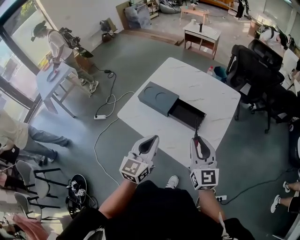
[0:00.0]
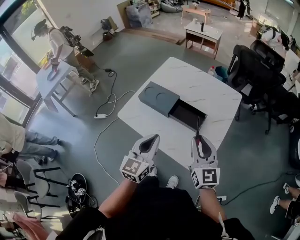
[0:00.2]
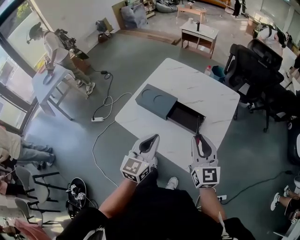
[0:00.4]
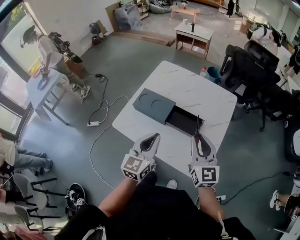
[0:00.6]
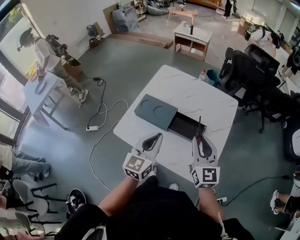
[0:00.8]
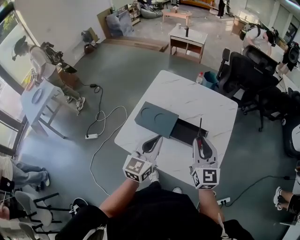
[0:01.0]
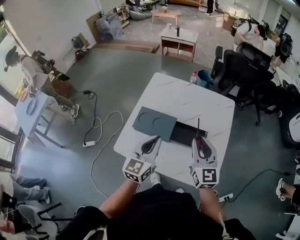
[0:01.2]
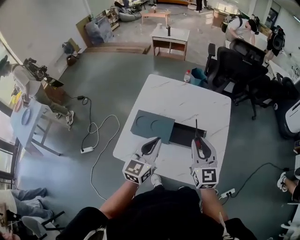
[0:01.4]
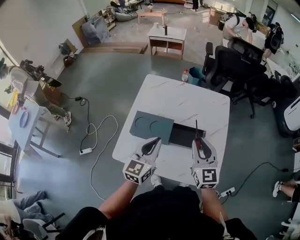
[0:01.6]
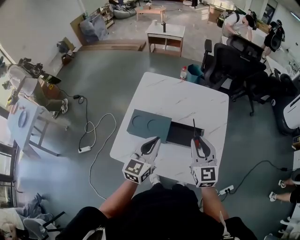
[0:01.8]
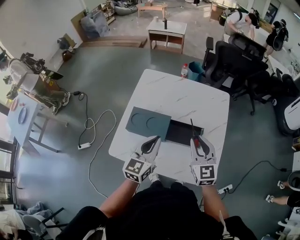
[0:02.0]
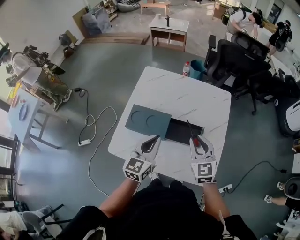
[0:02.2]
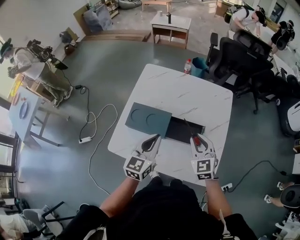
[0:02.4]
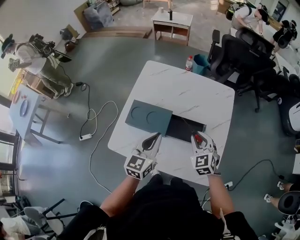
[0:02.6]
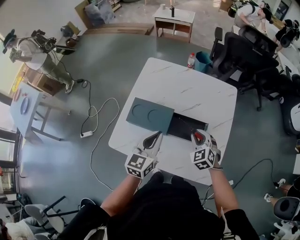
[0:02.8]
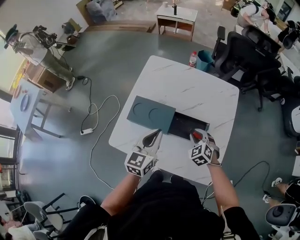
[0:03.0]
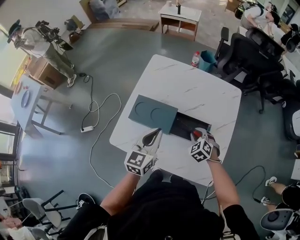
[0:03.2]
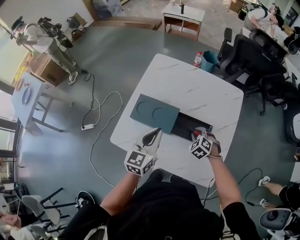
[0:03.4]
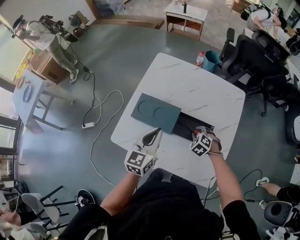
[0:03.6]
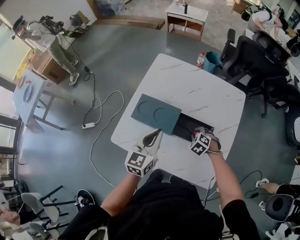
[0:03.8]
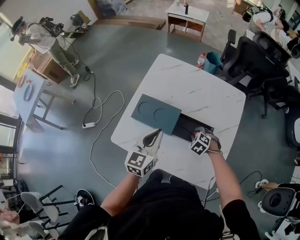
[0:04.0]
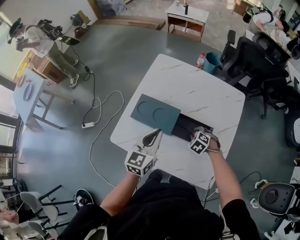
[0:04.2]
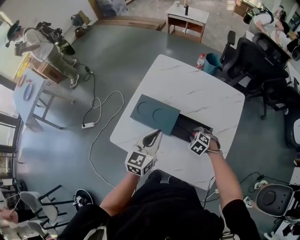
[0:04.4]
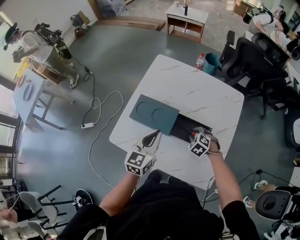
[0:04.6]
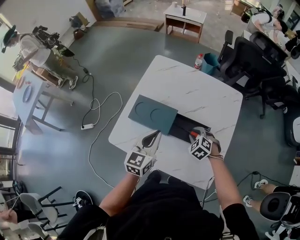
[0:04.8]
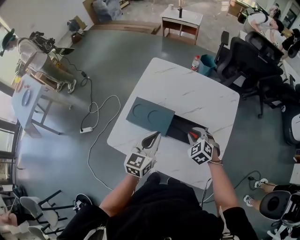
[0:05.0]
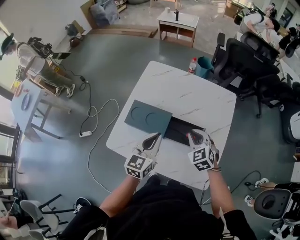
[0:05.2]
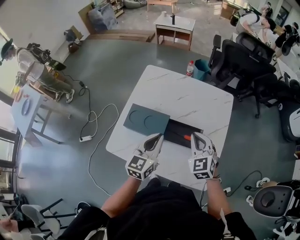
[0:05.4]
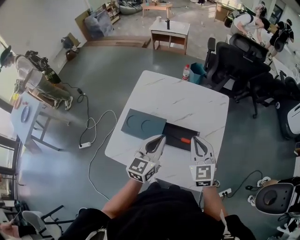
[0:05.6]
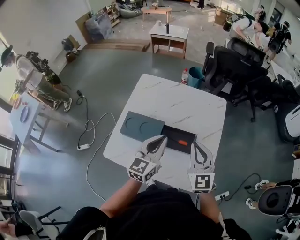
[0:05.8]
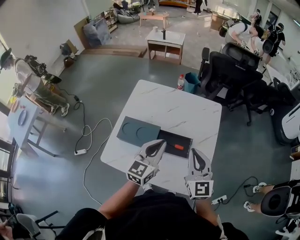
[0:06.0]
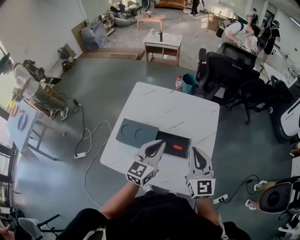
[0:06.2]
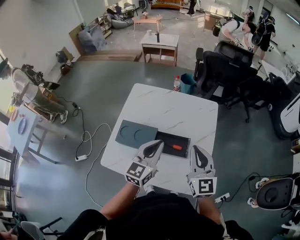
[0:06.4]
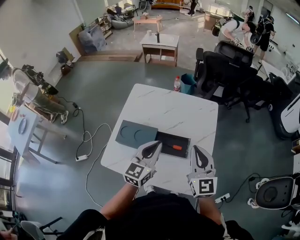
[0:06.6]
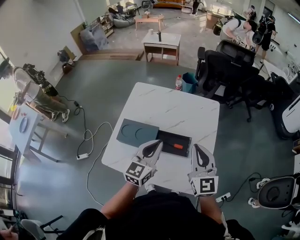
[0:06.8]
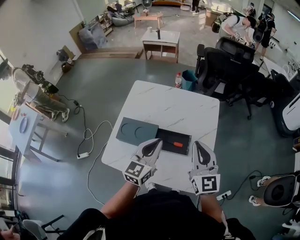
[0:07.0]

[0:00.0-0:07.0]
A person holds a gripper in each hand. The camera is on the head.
0:00.0 to 0:01.4: The right gripper goes approximately 15 cm forward and to the left; the left gripper moves forward, some 15 cm.
0:01.4 to 0:02.8: The right gripper goes some 15 cm downward, and tips its fingers downward by approximately 30 degrees. The left gripper shifts some 5 cm downward.
0:02.8 to 0:04.2: The right gripper moves downward, approximately 10 cm, and turns by some 30 degrees.
0:04.2 to 0:05.6: The right gripper travels upward by approximately 25 cm, and tips its fingers upward by roughly 50 degrees, while the left gripper is displaced to the right and upward by about 10 cm.
0:05.6 to 0:07.0: The right gripper goes roughly 10 cm upward.

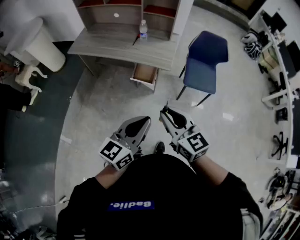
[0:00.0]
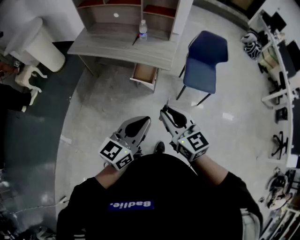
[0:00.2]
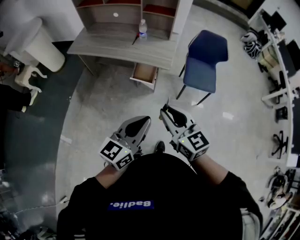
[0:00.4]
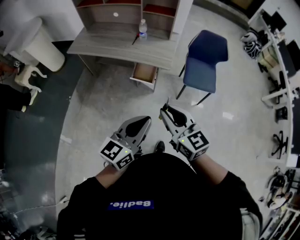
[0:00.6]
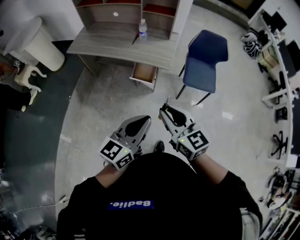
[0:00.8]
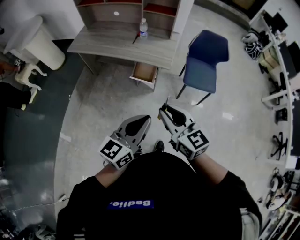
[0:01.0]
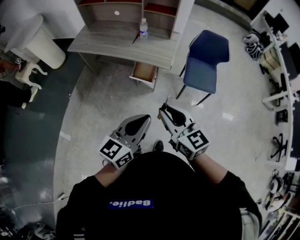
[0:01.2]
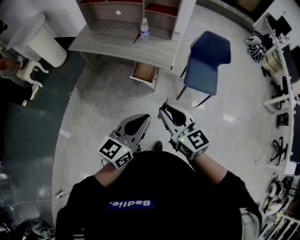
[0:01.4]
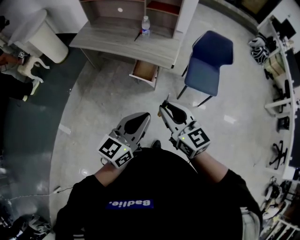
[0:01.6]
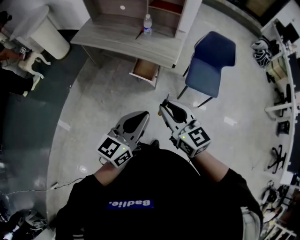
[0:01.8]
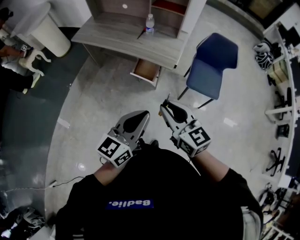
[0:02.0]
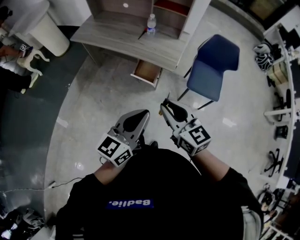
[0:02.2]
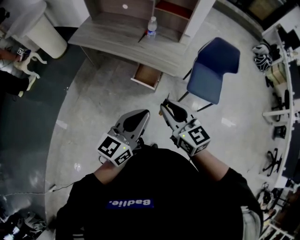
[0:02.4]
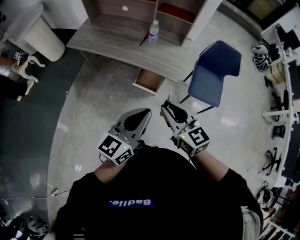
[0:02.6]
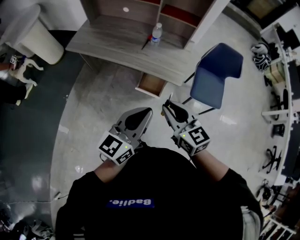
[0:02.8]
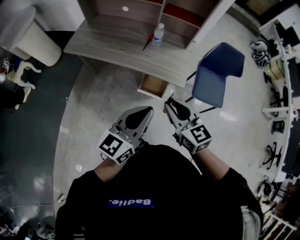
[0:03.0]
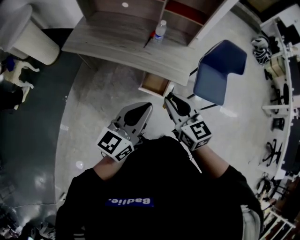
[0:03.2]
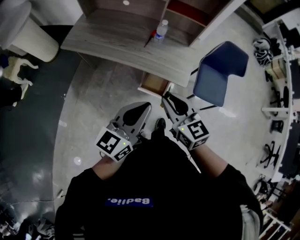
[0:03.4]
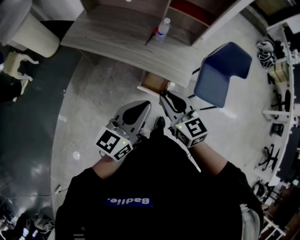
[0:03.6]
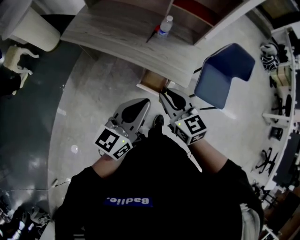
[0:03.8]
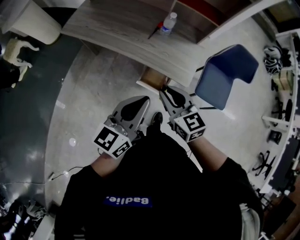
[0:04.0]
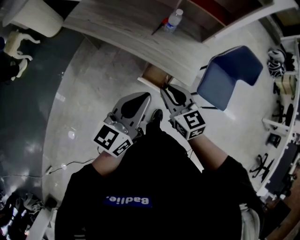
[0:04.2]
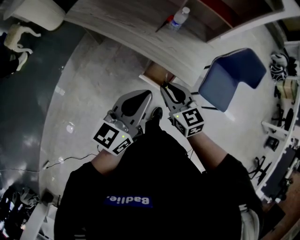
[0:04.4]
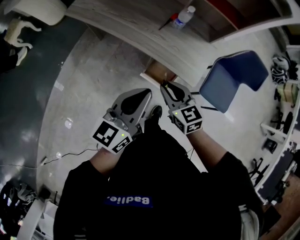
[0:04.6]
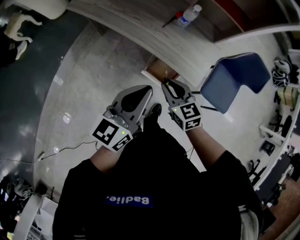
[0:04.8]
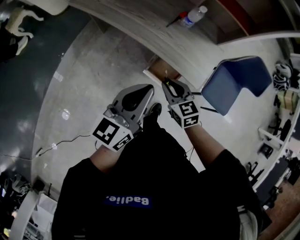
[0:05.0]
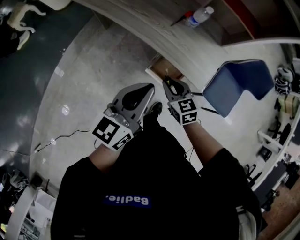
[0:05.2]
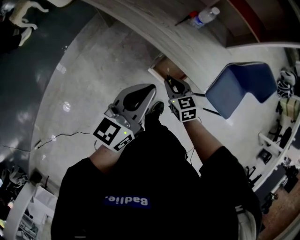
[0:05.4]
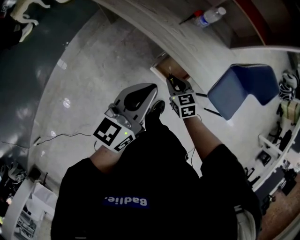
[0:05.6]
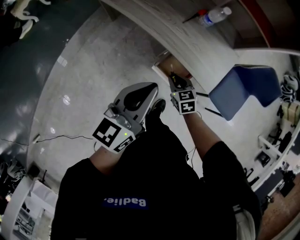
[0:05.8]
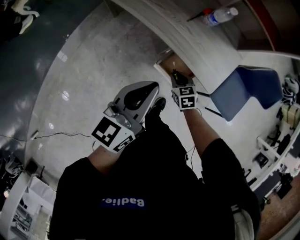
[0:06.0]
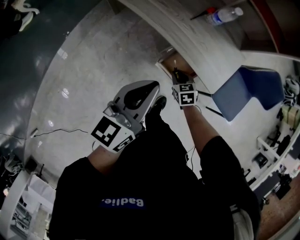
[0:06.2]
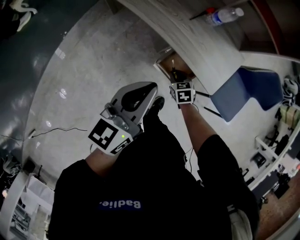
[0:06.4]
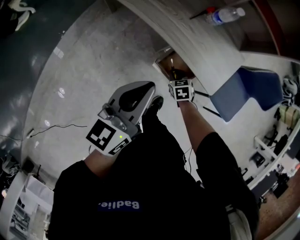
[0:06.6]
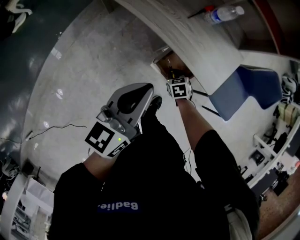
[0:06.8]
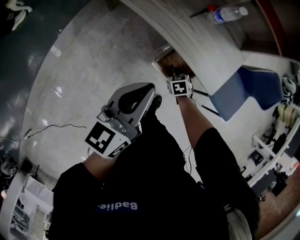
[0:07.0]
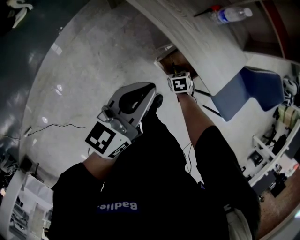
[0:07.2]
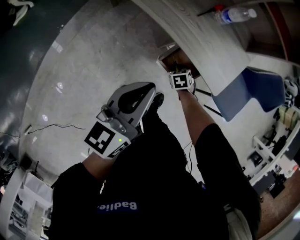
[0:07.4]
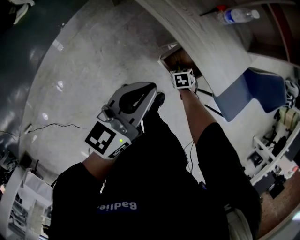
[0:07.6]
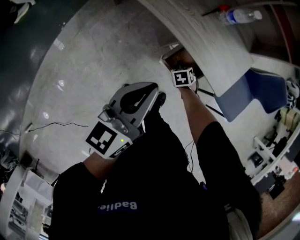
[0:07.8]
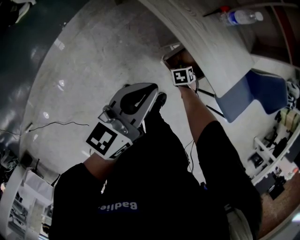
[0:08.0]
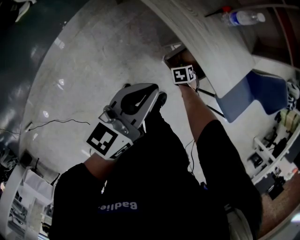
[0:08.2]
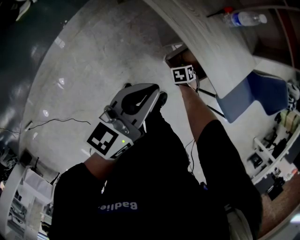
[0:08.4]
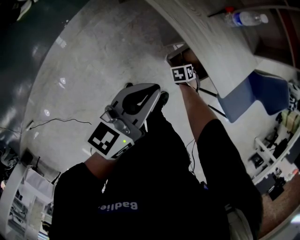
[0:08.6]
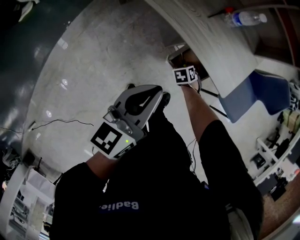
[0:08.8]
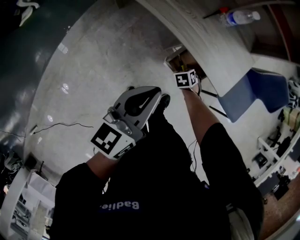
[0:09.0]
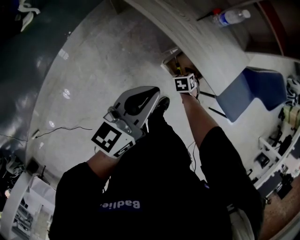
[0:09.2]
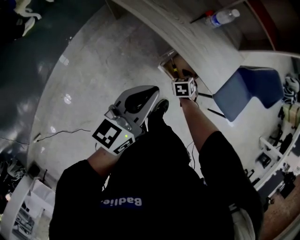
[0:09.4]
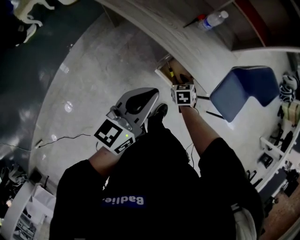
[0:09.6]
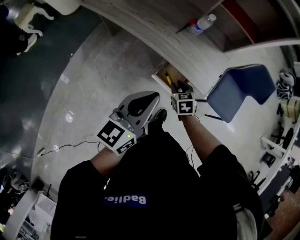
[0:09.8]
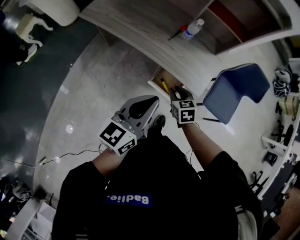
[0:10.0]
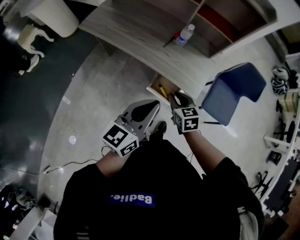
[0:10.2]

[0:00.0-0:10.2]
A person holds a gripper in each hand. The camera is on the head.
0:00.0 to 0:01.4: The grippers stay close to where they were, moving slightly.
0:01.4 to 0:03.0: The right gripper travels forward by some 20 cm. The left gripper shifts about 20 cm forward and to the left.
0:03.0 to 0:04.4: The right gripper shifts about 15 cm downward and forward, while the left gripper moves forward and downward, approximately 10 cm.
0:04.4 to 0:05.8: The right gripper shifts roughly 20 cm downward, and changes its angle by roughly 20 degrees. The left gripper moves downward, roughly 5 cm.
0:05.8 to 0:07.2: The left gripper moves some 5 cm, while the right gripper moves downward, approximately 15 cm, and rotates approximately 20 degrees.
0:07.2 to 0:08.8: The grippers make only small movements.
0:08.8 to 0:10.2: The left gripper shifts about 15 cm upward and to the right. The right gripper moves upward, approximately 30 cm, and angles its fingers upward, by some 30 degrees.

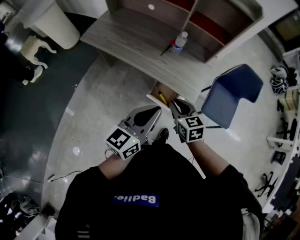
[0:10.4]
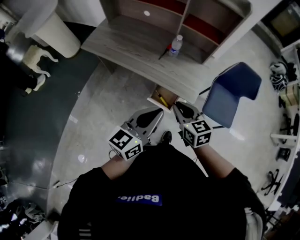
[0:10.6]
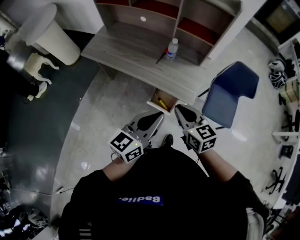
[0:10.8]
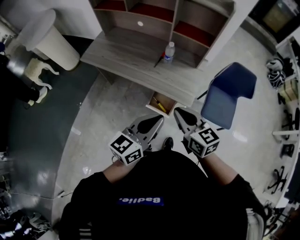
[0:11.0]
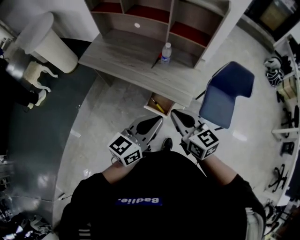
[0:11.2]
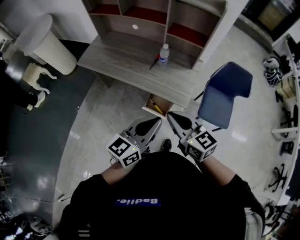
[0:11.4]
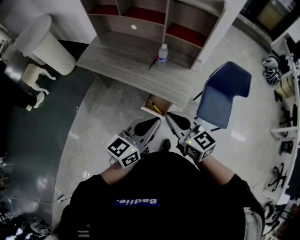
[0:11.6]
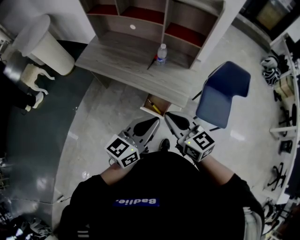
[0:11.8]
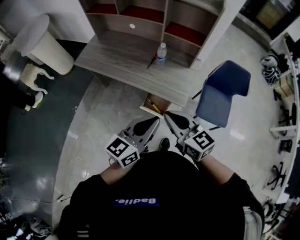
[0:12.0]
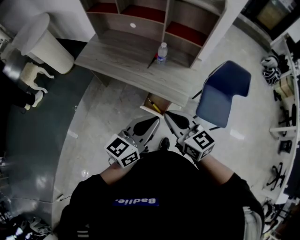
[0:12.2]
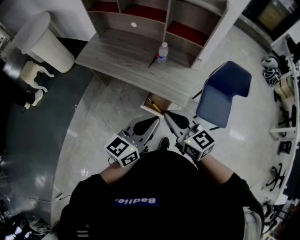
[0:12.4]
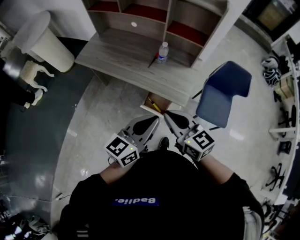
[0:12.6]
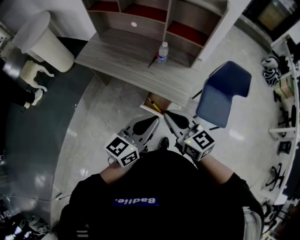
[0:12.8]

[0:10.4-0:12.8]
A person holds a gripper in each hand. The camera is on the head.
0:10.4 to 0:11.6: The right gripper shifts roughly 15 cm upward, and rotates roughly 20 degrees. The left gripper ends up roughly 5 cm from where it was.
0:11.6 to 0:12.8: The two grippers keep their place.

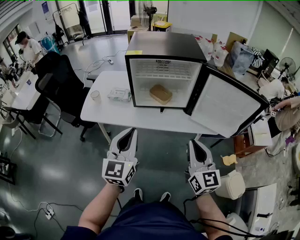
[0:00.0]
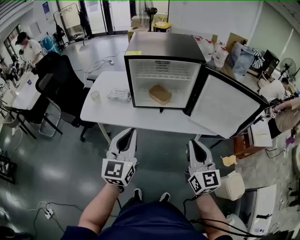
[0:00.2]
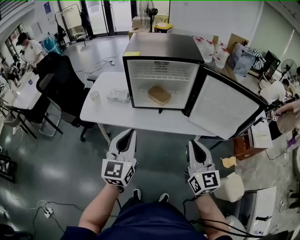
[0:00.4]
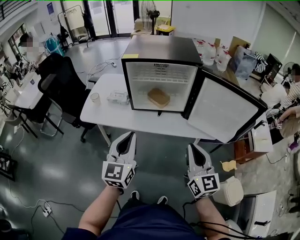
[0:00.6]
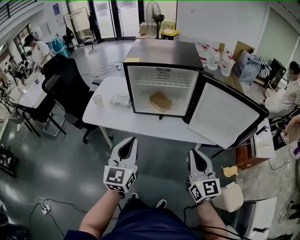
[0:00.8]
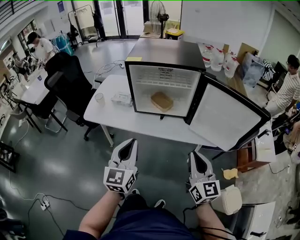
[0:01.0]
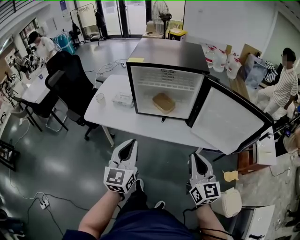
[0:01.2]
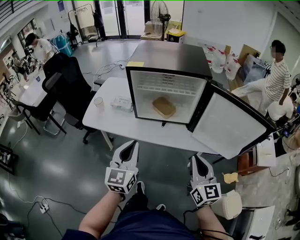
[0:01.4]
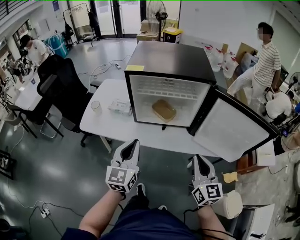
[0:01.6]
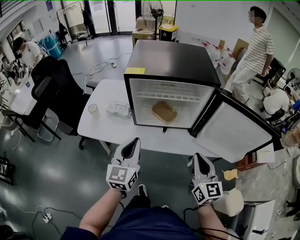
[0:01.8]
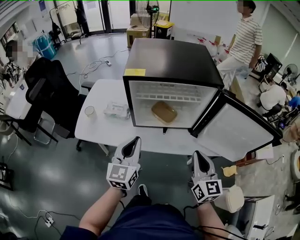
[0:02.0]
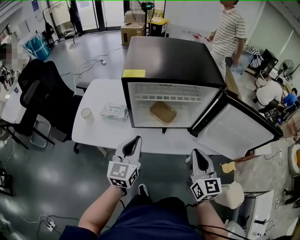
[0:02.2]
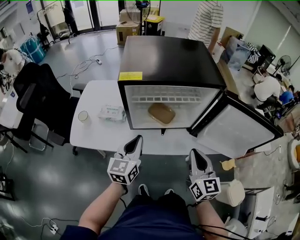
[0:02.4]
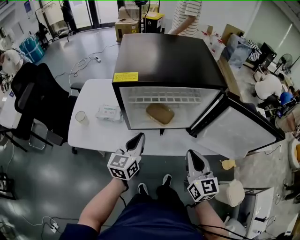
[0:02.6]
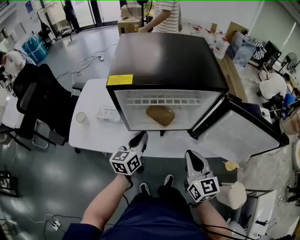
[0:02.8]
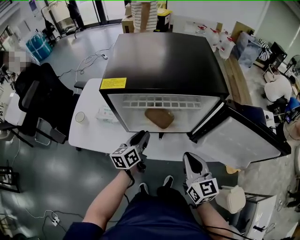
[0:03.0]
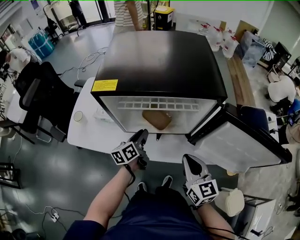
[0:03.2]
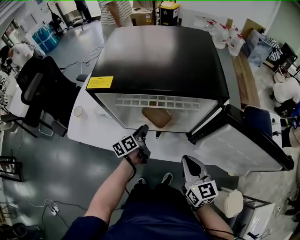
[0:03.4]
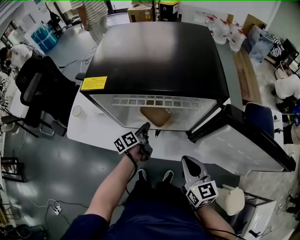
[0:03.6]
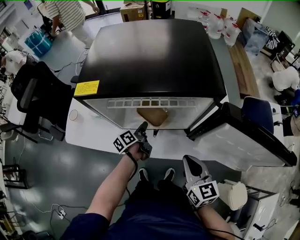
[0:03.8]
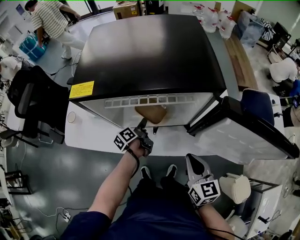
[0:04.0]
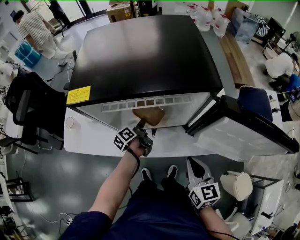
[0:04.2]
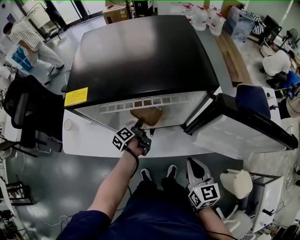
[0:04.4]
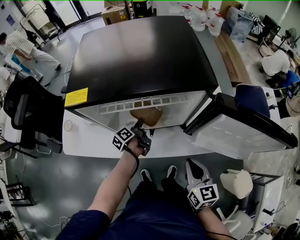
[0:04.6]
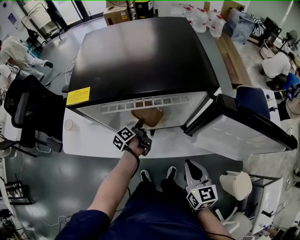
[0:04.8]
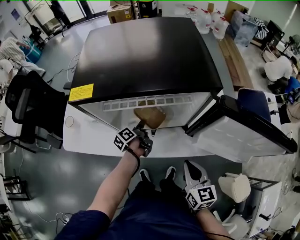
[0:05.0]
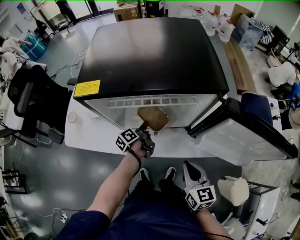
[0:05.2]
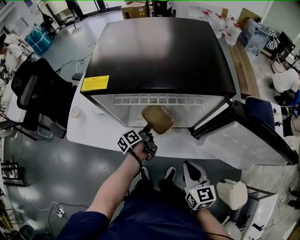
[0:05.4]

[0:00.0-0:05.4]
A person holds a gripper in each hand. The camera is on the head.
0:00.0 to 0:01.4: The left gripper moves approximately 5 cm. The right gripper is displaced to the right by about 5 cm.
0:01.4 to 0:02.8: The right gripper travels forward and to the left by about 15 cm. Meanwhile the left gripper travels forward and downward by approximately 25 cm, and swivels some 30 degrees.
0:02.8 to 0:04.0: The left gripper travels downward and forward by approximately 20 cm, rolls counterclockwise, seen from behind, by some 50 degrees, and opens up. Meanwhile the right gripper heads downward and to the right, covering roughly 10 cm.
0:04.0 to 0:05.4: The grippers move only a little.
